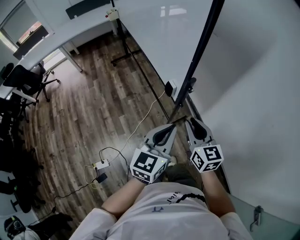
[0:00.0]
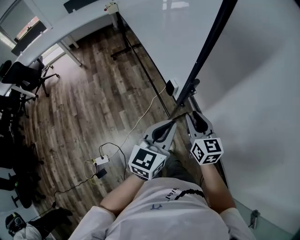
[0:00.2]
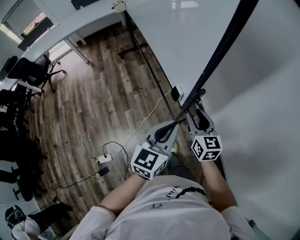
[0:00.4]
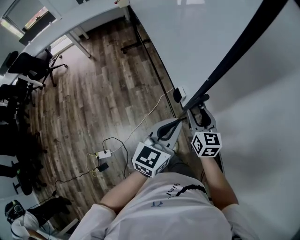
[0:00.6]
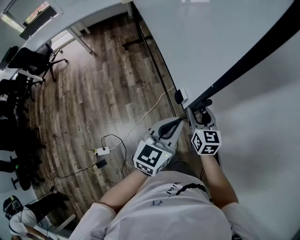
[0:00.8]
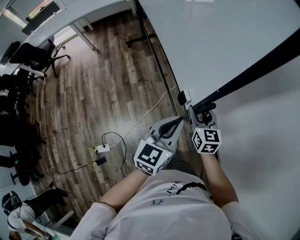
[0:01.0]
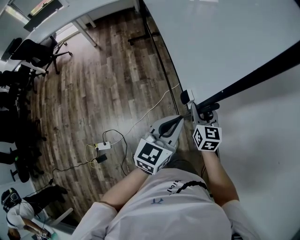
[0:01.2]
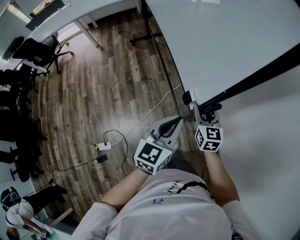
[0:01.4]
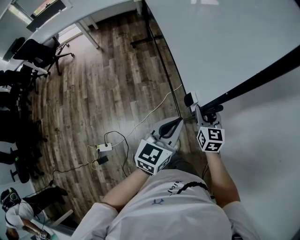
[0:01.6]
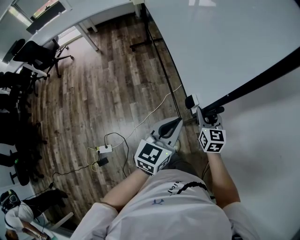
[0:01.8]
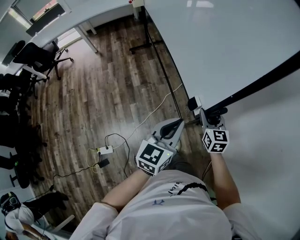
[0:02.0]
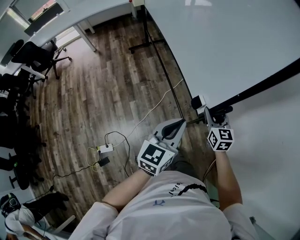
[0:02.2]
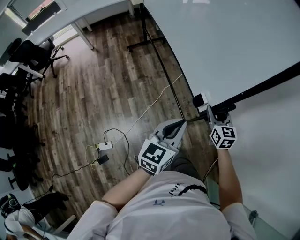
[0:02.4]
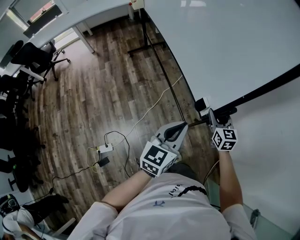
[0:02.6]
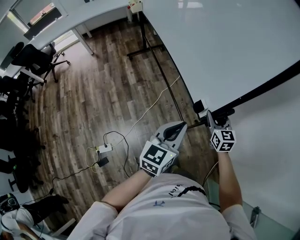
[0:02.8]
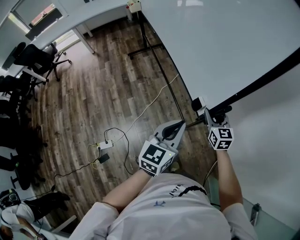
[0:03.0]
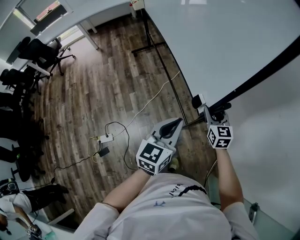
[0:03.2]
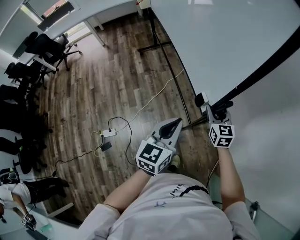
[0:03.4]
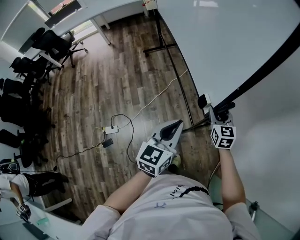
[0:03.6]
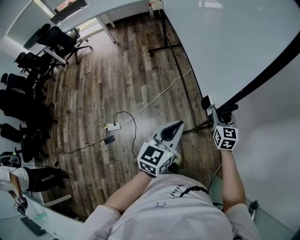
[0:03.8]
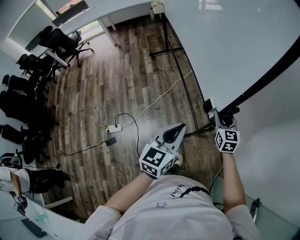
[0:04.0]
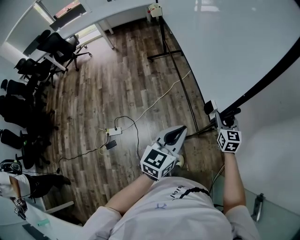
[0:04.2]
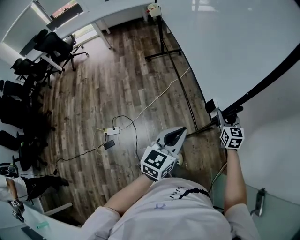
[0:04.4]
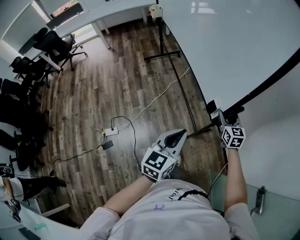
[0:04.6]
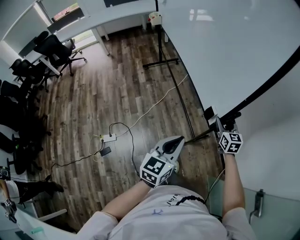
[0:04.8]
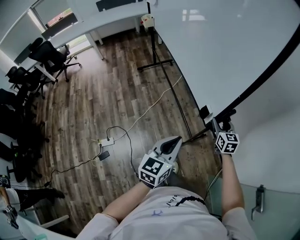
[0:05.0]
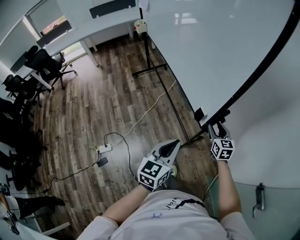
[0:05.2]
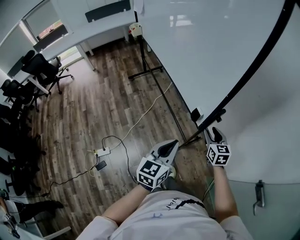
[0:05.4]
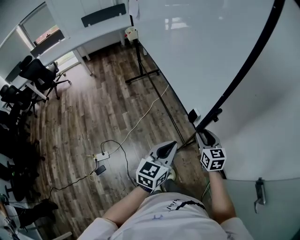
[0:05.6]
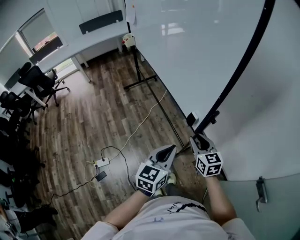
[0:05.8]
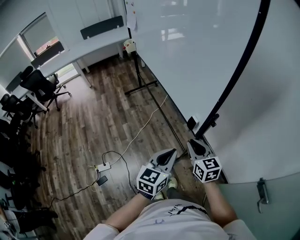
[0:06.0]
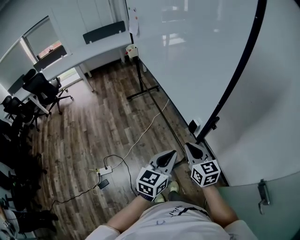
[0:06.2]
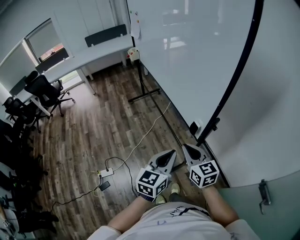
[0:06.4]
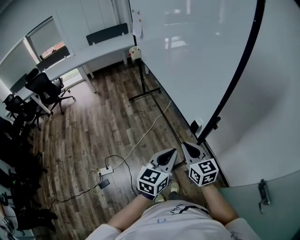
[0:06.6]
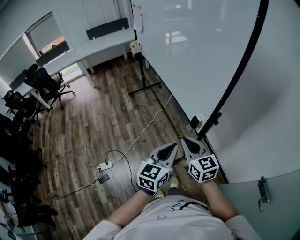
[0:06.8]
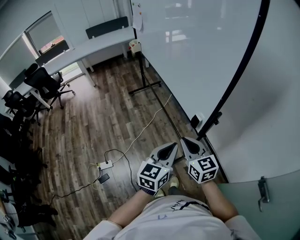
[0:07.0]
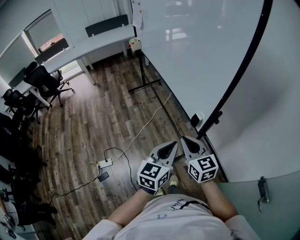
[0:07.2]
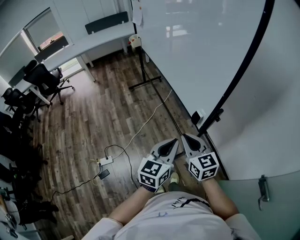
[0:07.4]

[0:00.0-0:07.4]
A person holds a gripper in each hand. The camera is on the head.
0:00.0 to 0:01.4: The left gripper travels forward by roughly 10 cm. The right gripper heads forward and downward, covering roughly 20 cm, and opens.
0:01.4 to 0:03.0: The grippers both shift backward and to the right by about 20 cm.
0:03.0 to 0:04.4: The left gripper is displaced backward by about 20 cm, while the right gripper goes some 15 cm backward and to the right.
0:04.4 to 0:06.0: The right gripper goes some 20 cm backward, upward and to the left, and closes its fingers.
0:06.0 to 0:07.4: The right gripper shifts approximately 5 cm to the left.

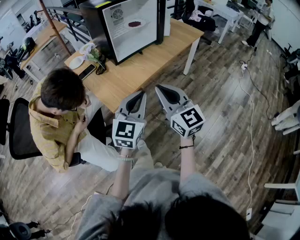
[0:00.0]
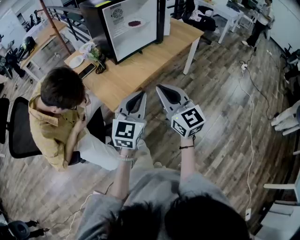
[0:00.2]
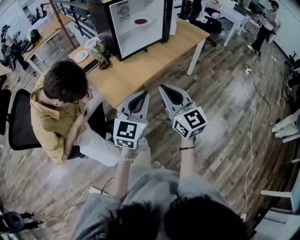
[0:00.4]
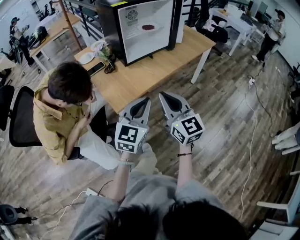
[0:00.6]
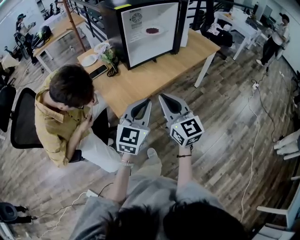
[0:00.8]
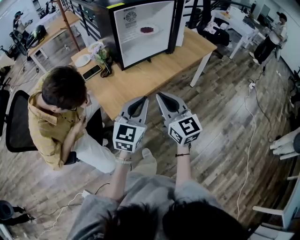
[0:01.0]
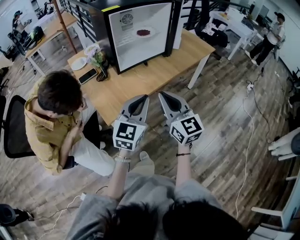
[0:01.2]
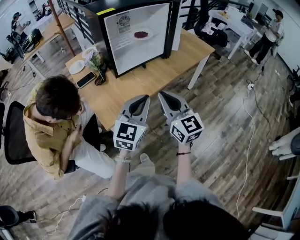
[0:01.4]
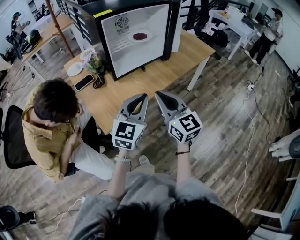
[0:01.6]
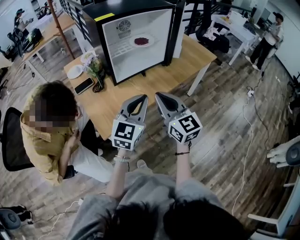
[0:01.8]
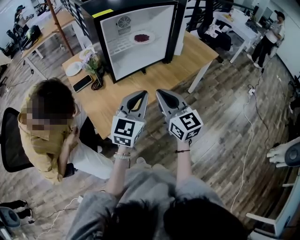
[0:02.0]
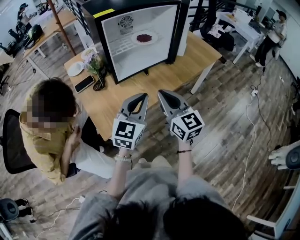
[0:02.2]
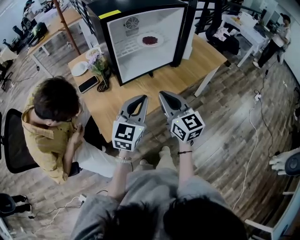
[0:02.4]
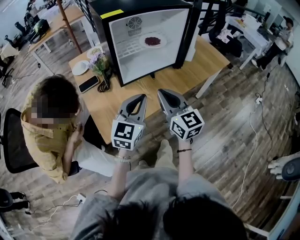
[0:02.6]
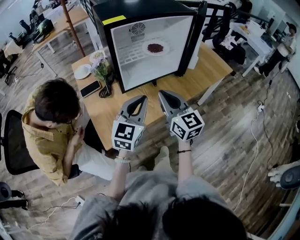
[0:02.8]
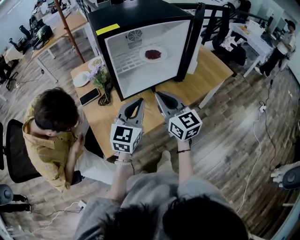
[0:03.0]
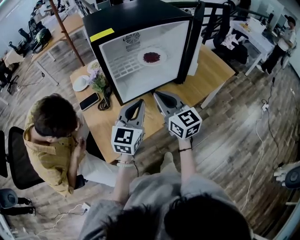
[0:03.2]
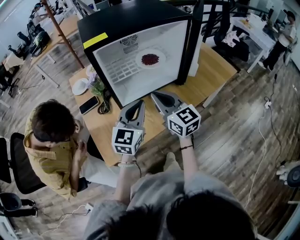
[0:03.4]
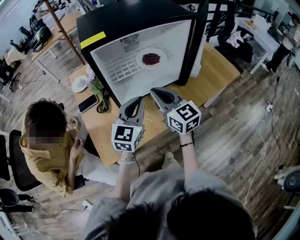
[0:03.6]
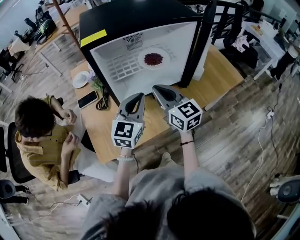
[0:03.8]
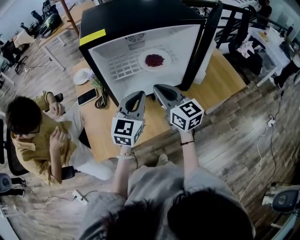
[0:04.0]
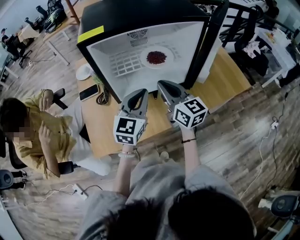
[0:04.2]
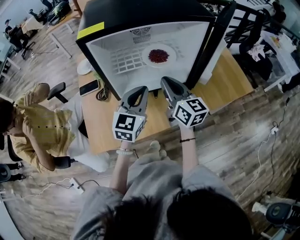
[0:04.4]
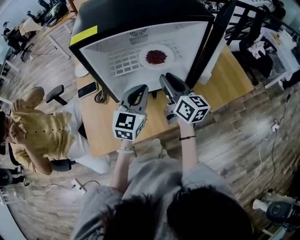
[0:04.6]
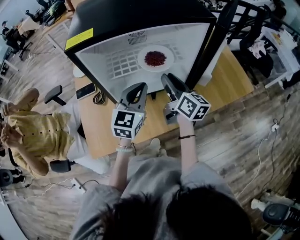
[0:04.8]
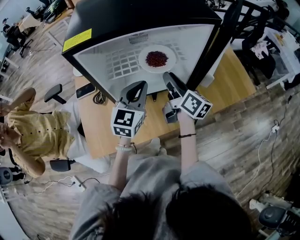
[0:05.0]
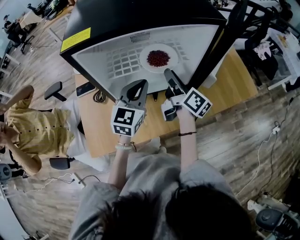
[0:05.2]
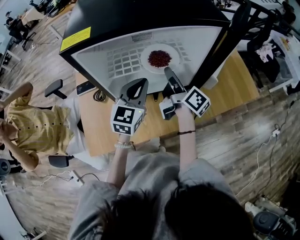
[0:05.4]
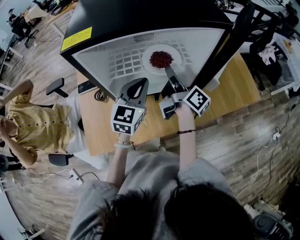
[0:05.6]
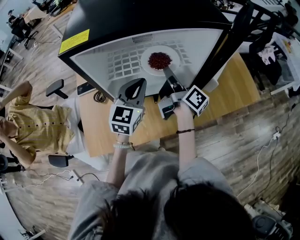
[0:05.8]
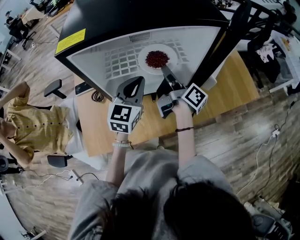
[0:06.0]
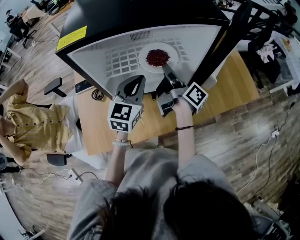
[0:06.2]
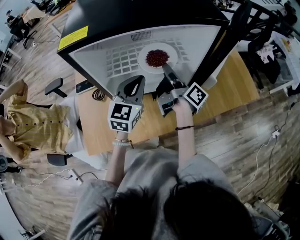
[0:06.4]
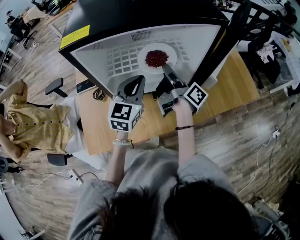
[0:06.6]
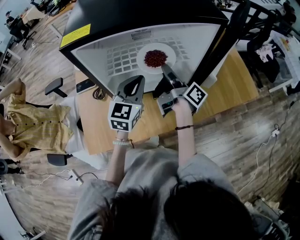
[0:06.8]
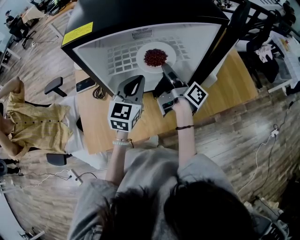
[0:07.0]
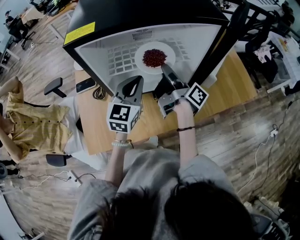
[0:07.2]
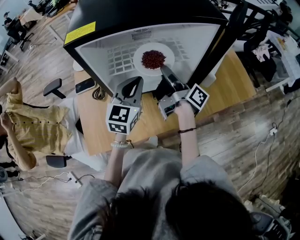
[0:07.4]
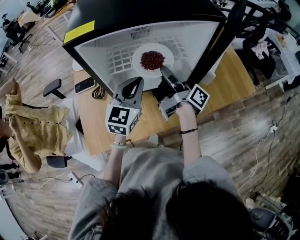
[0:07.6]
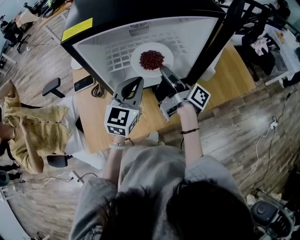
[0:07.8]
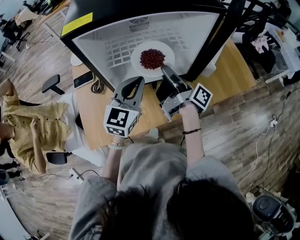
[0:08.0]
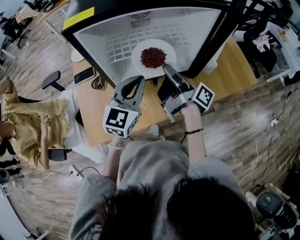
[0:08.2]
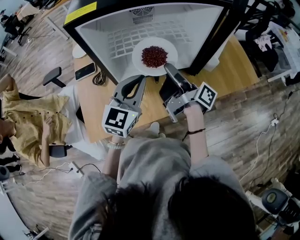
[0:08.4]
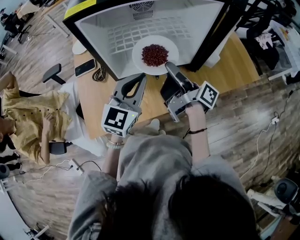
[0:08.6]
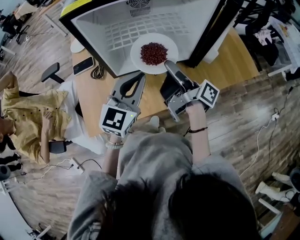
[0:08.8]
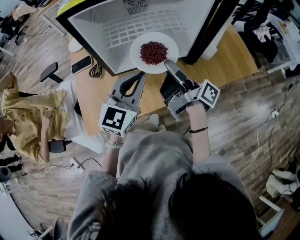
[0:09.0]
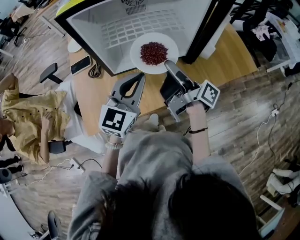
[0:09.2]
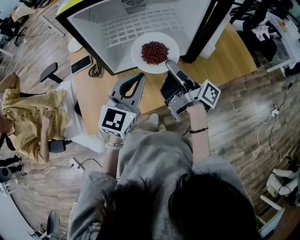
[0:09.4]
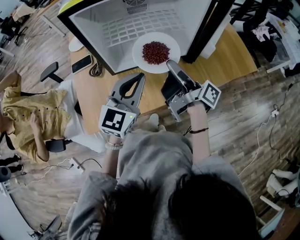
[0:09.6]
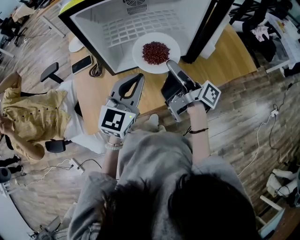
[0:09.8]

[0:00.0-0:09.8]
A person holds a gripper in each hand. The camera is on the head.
0:00.0 to 0:01.4: Both grippers move forward, about 10 cm.
0:01.4 to 0:02.8: Both grippers travel together forward, about 15 cm.
0:02.8 to 0:04.2: The left gripper is displaced forward and to the right by roughly 15 cm. Meanwhile the right gripper goes about 15 cm forward.
0:04.2 to 0:05.6: The grippers both shift forward by about 10 cm. The right gripper twists about 60 degrees clockwise, seen from behind, and opens its fingers.
0:05.6 to 0:07.0: The grippers make only small movements.
0:07.0 to 0:08.4: The two grippers go approximately 10 cm backward.
0:08.4 to 0:09.8: The grippers stay close to where they were, moving slightly.

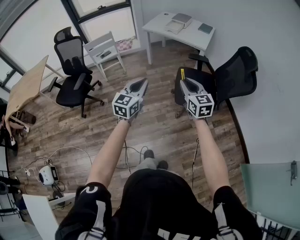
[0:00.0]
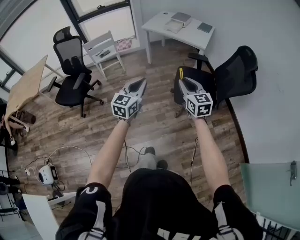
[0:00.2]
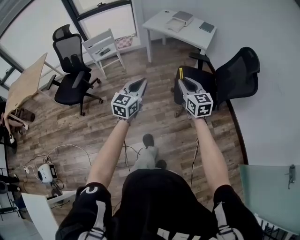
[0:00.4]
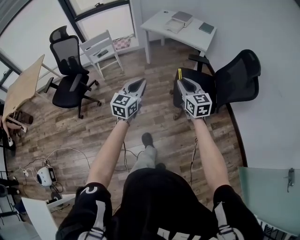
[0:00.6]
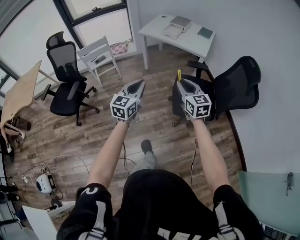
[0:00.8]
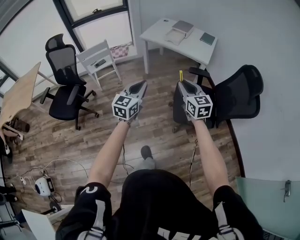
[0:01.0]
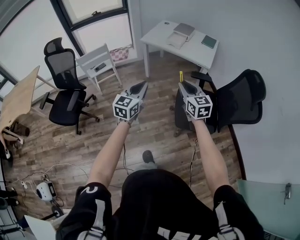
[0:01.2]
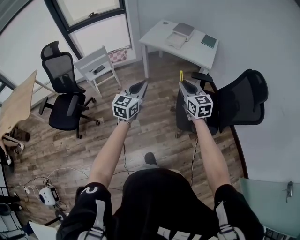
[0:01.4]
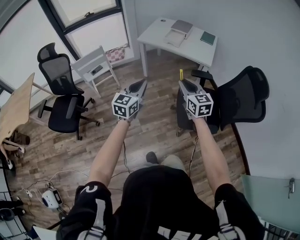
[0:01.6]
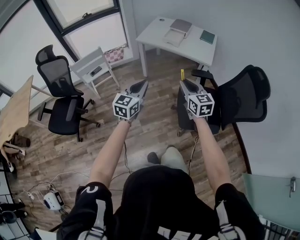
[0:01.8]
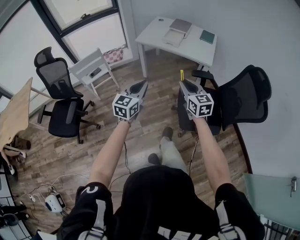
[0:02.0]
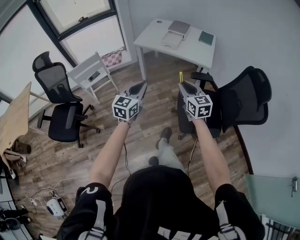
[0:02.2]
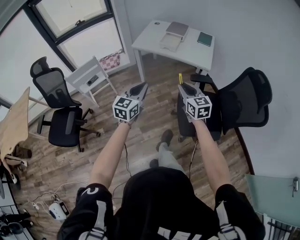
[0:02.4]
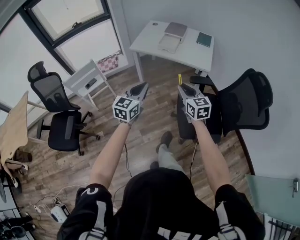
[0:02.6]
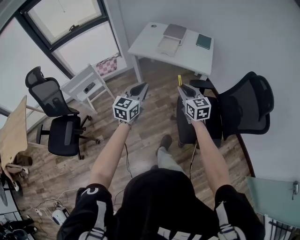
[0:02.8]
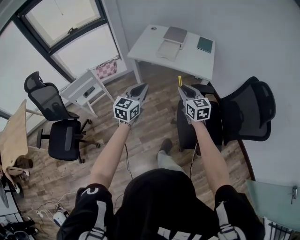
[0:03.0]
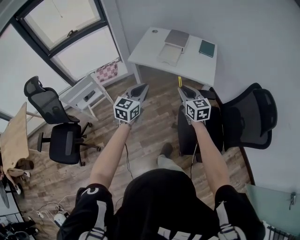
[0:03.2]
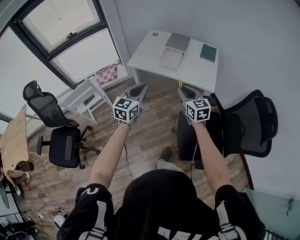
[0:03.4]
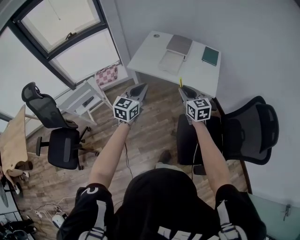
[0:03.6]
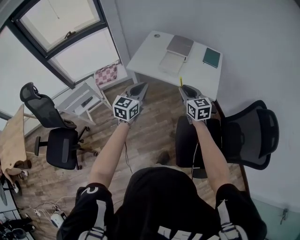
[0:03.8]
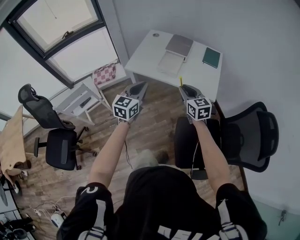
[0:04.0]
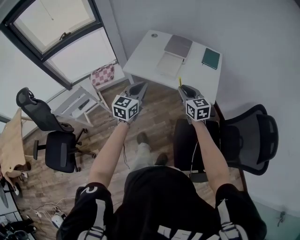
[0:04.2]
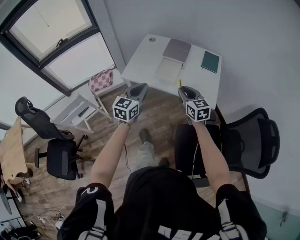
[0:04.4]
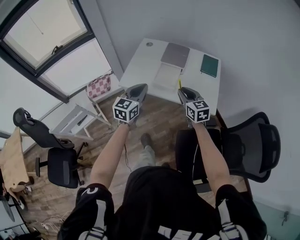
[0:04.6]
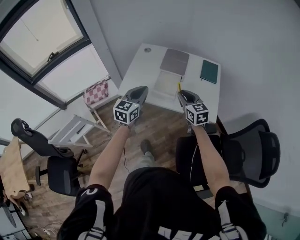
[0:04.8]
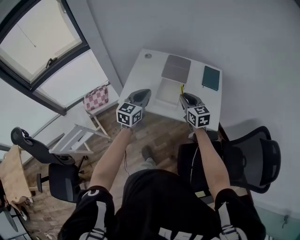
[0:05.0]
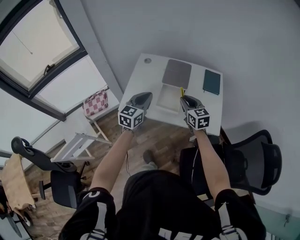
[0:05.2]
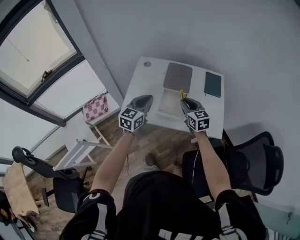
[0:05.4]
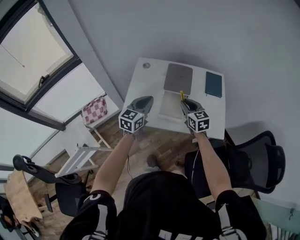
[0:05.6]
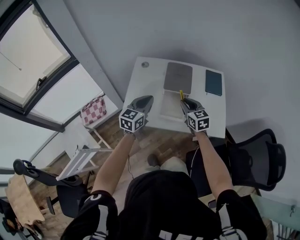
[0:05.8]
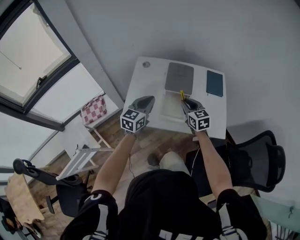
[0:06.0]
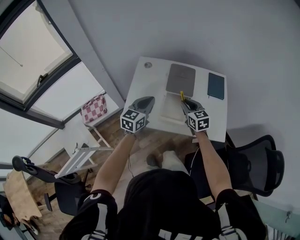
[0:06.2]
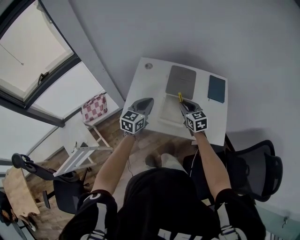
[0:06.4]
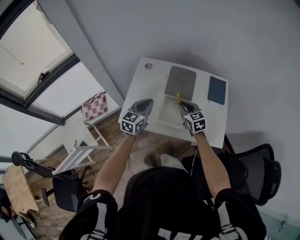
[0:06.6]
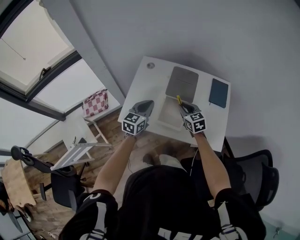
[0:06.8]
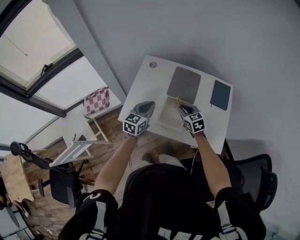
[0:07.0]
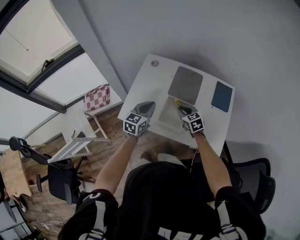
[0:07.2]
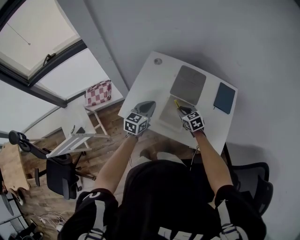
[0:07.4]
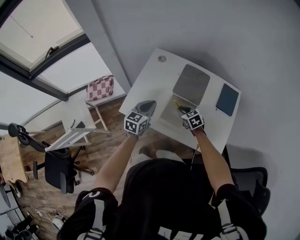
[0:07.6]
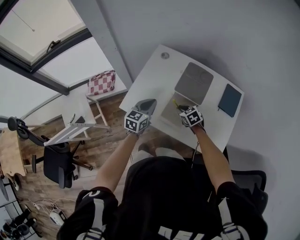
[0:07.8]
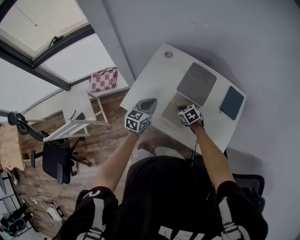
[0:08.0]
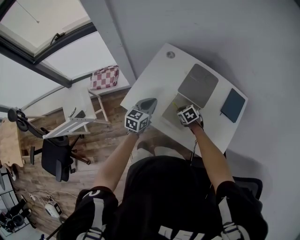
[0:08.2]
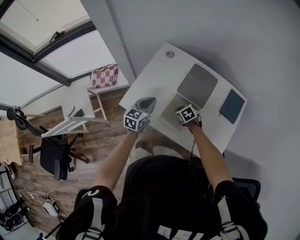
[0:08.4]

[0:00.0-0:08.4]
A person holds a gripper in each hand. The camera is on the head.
0:00.0 to 0:01.4: Both grippers move forward, approximately 25 cm.
0:01.4 to 0:02.8: Both grippers move forward, roughly 20 cm.
0:02.8 to 0:04.2: Both grippers travel together forward, approximately 30 cm.
0:04.2 to 0:05.6: The grippers both shift forward by roughly 30 cm.
0:05.6 to 0:07.0: The right gripper goes about 10 cm downward and forward. The left gripper heads downward, covering roughly 5 cm.
0:07.0 to 0:08.4: The left gripper shifts some 5 cm downward. Meanwhile the right gripper moves downward, some 15 cm, and turns by roughly 40 degrees.
